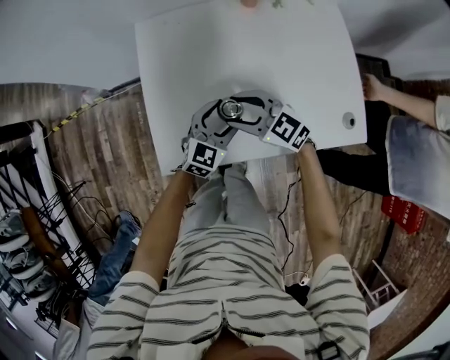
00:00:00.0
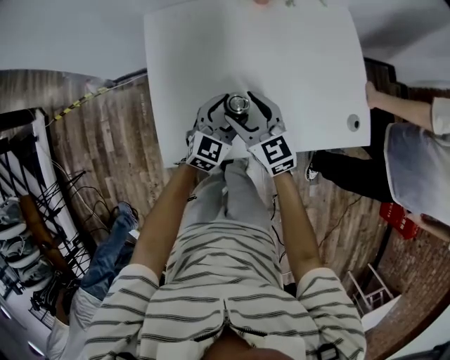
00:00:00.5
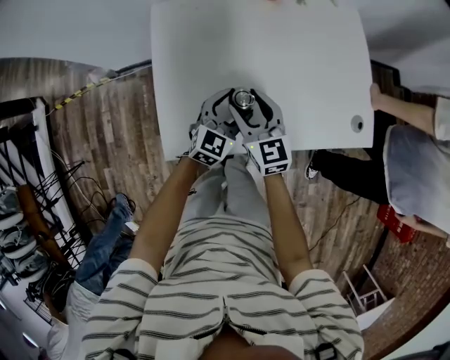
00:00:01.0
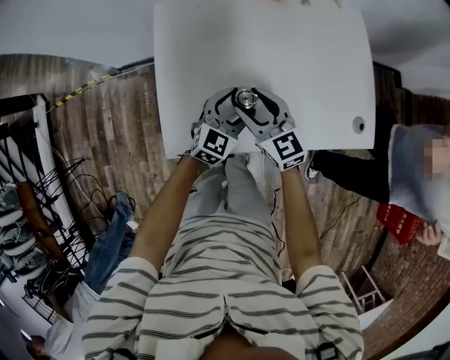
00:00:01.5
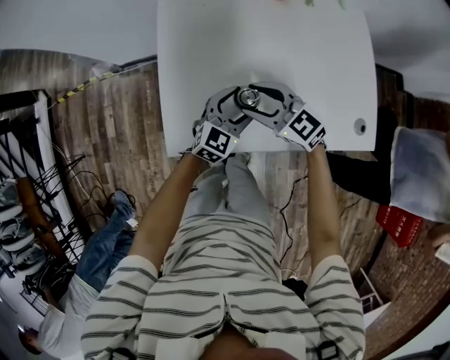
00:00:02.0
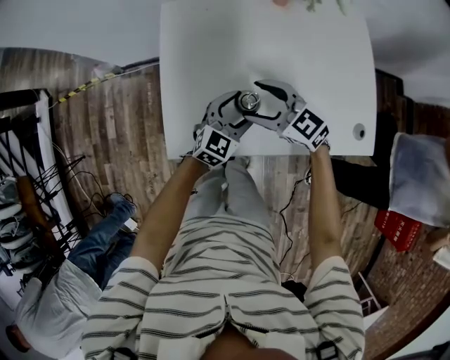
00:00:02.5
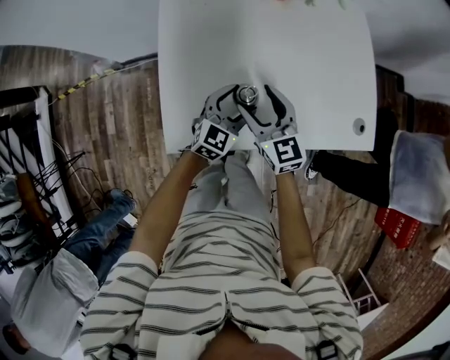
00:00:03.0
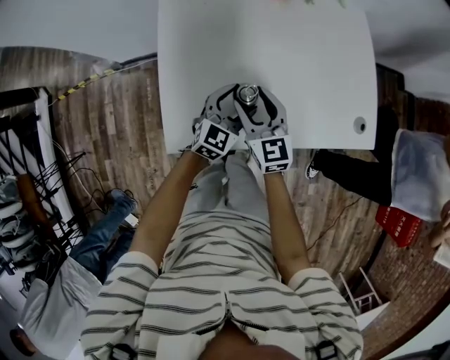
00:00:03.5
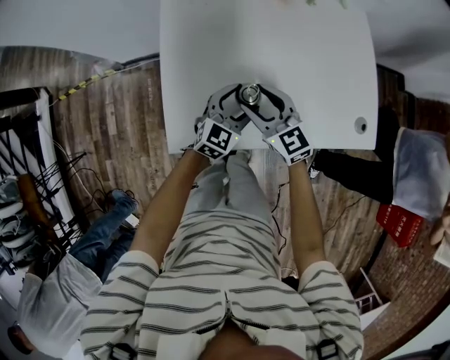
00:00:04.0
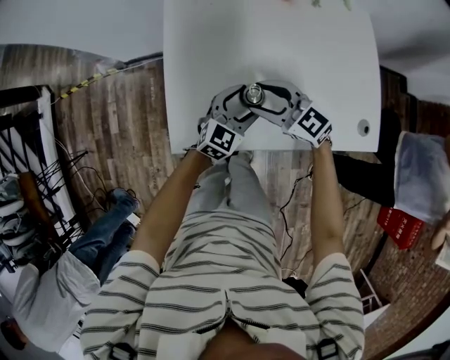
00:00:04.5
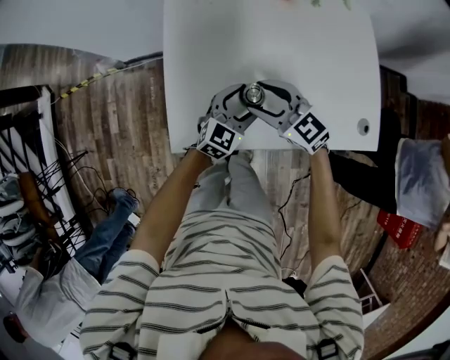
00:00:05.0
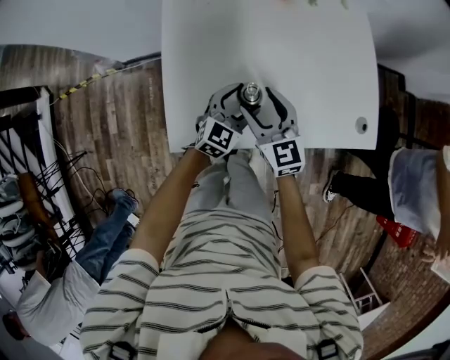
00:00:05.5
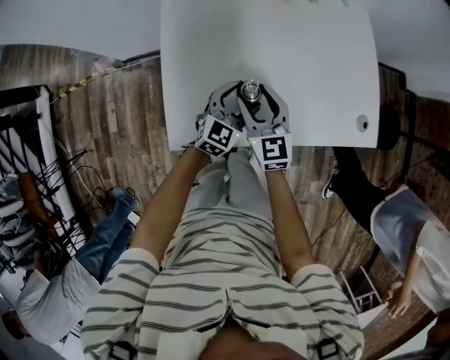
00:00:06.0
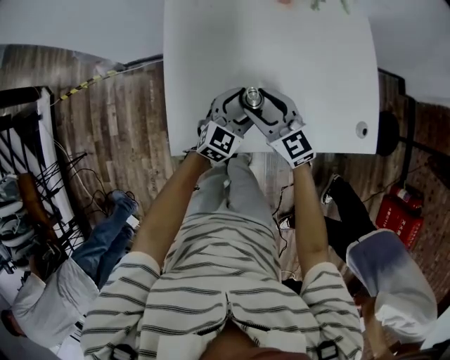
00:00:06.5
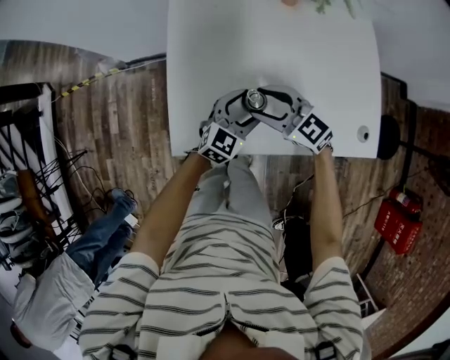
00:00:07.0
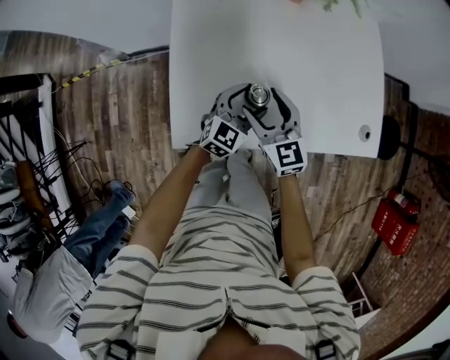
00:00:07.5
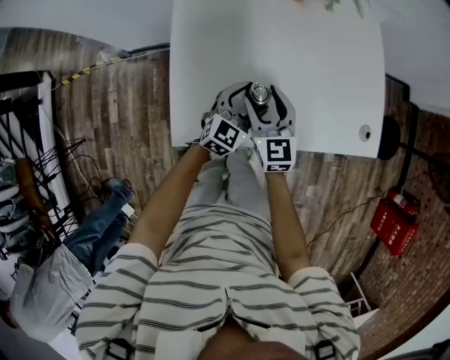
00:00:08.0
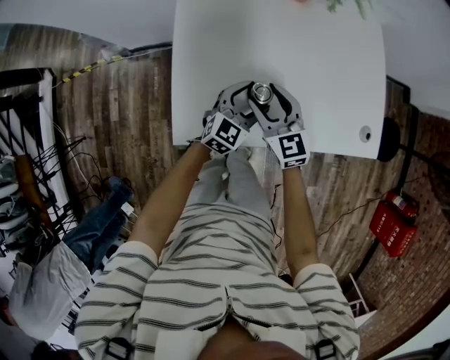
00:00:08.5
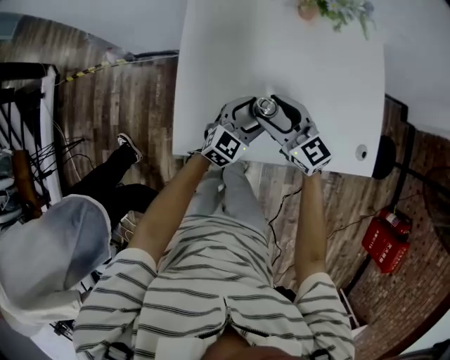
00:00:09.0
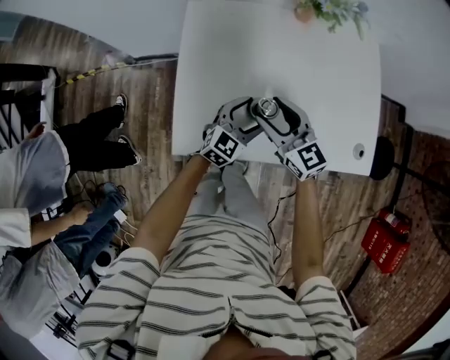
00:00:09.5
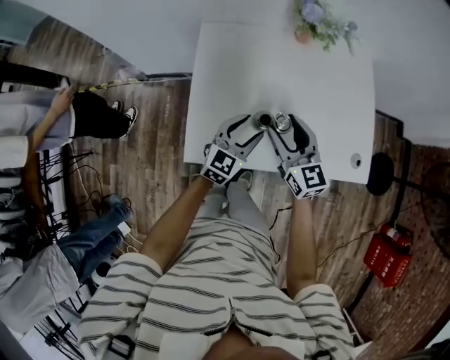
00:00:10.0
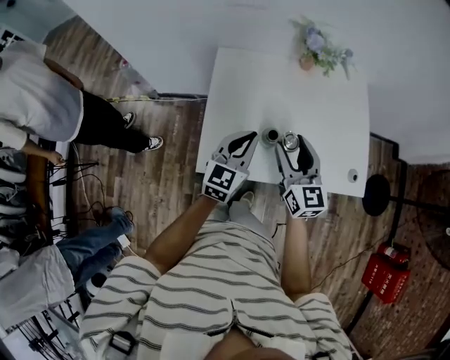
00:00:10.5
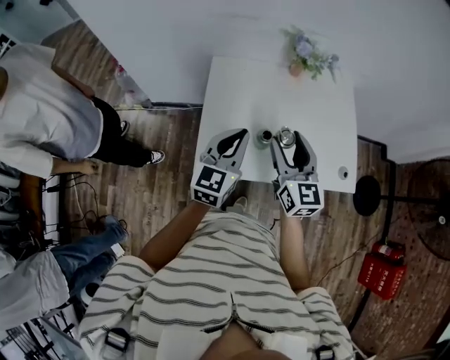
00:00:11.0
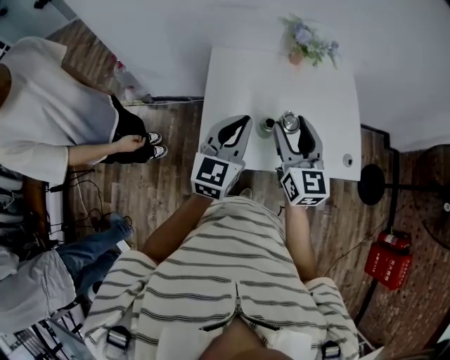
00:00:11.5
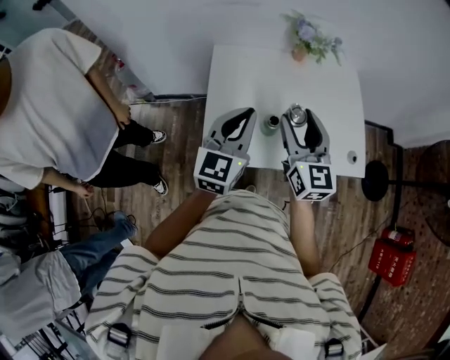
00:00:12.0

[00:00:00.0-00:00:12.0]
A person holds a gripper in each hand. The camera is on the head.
00:00:02.0 to 00:00:04.0: The right gripper rotates some 20 degrees.
00:00:08.0 to 00:00:10.0: Both grippers move upward, about 5 cm.
00:00:10.0 to 00:00:12.0: The grippers both shift upward by about 20 cm. The left gripper closes.
